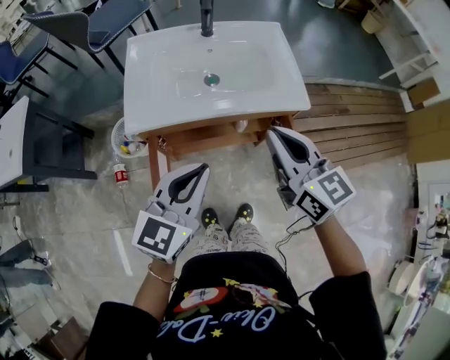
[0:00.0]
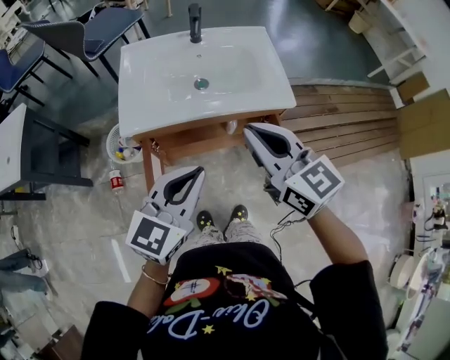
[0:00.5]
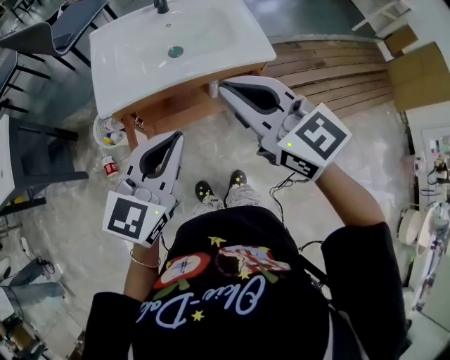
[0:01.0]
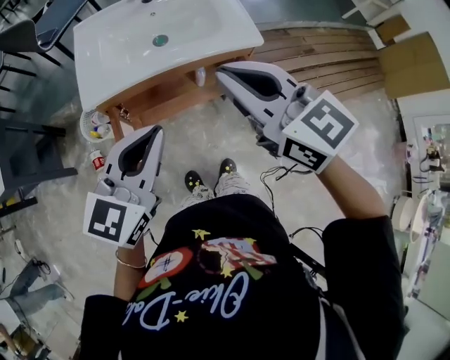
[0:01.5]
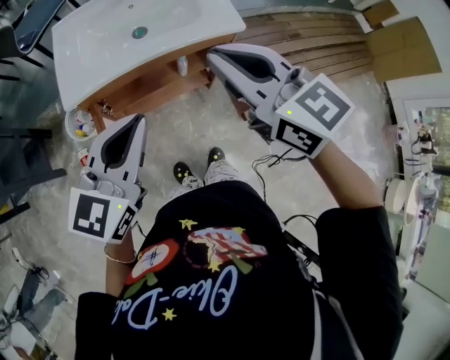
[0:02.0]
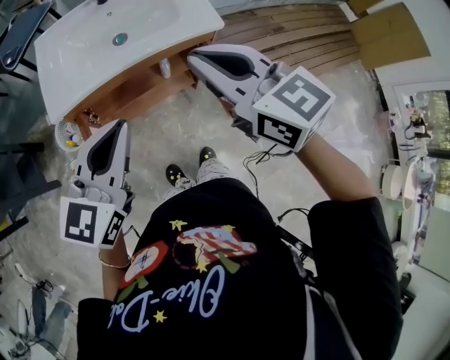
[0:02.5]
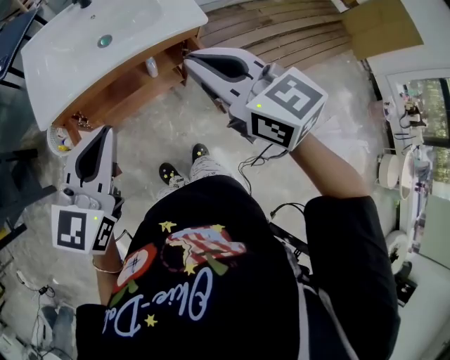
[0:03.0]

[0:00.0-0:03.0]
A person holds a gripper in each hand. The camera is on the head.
0.0 to 1.5 s: The right gripper goes about 10 cm upward and backward. The left gripper changes place by about 5 cm.
1.5 to 3.0 s: The right gripper moves to the right, some 5 cm.

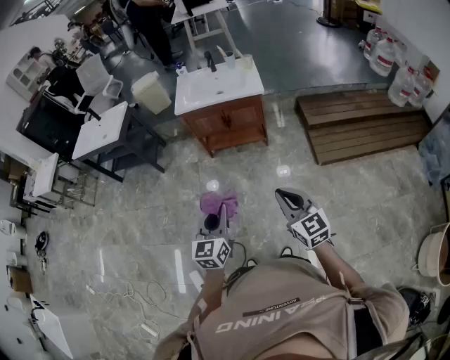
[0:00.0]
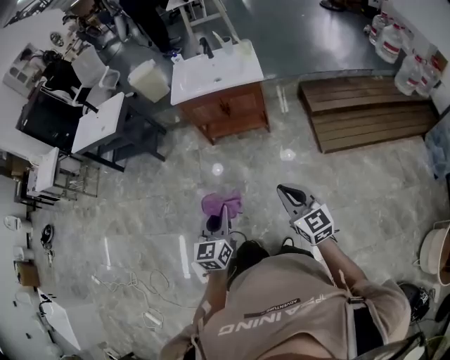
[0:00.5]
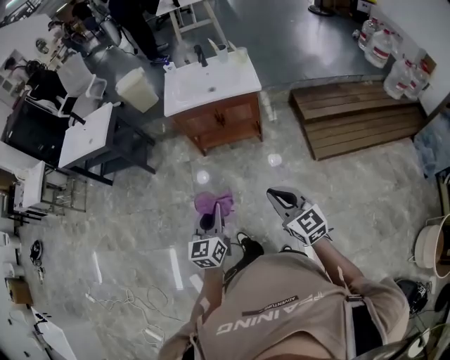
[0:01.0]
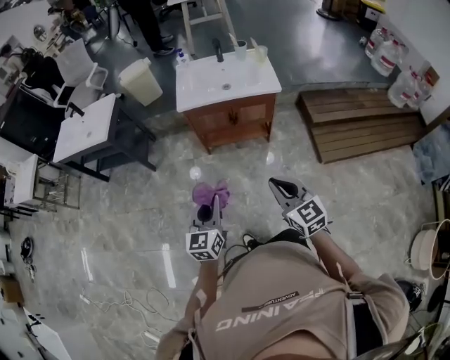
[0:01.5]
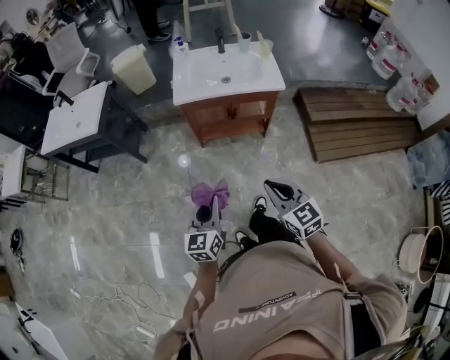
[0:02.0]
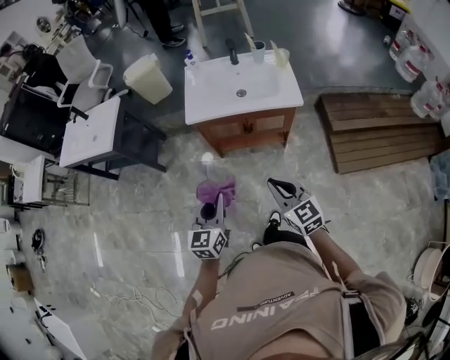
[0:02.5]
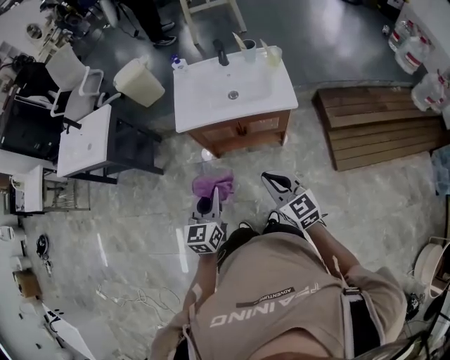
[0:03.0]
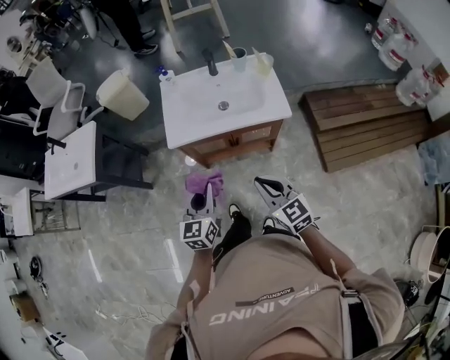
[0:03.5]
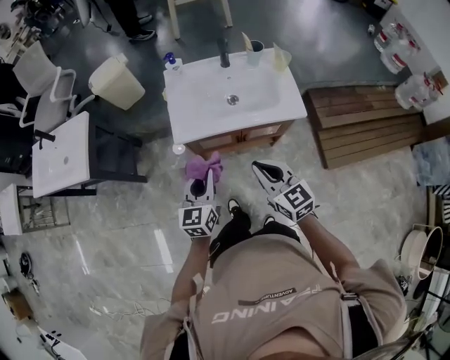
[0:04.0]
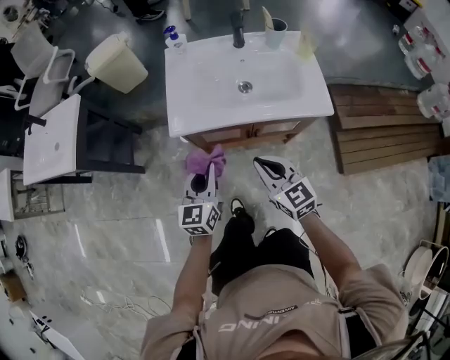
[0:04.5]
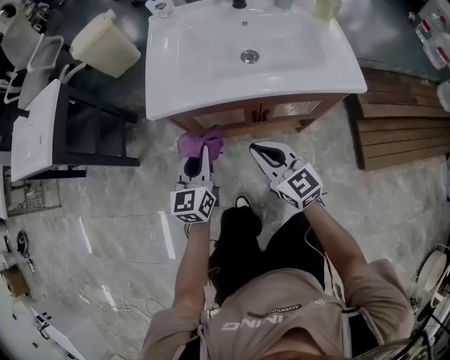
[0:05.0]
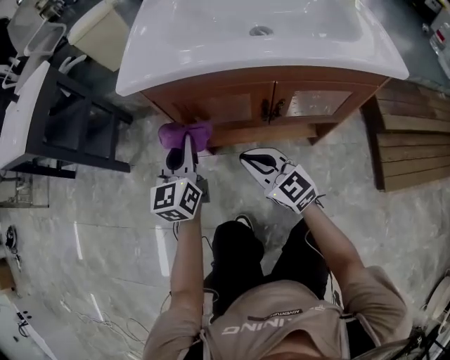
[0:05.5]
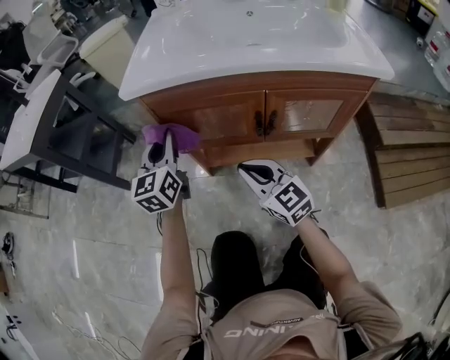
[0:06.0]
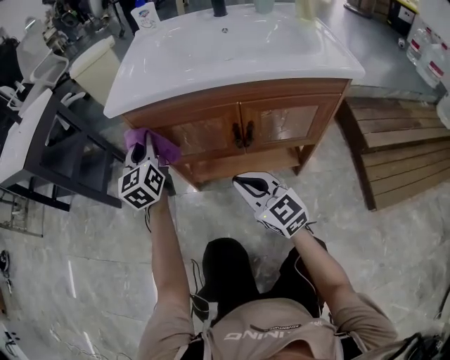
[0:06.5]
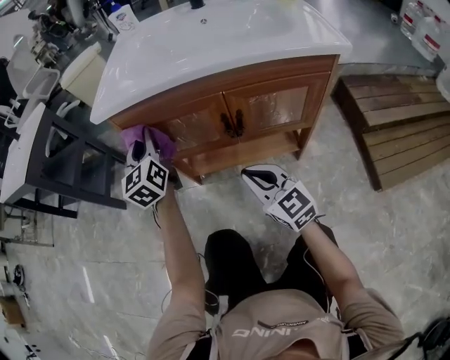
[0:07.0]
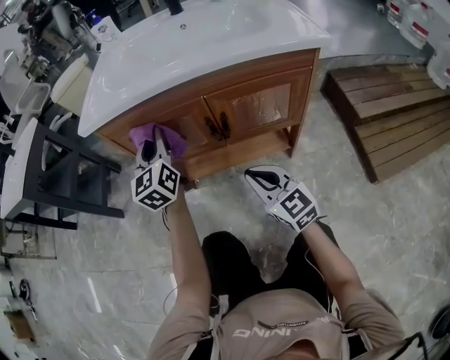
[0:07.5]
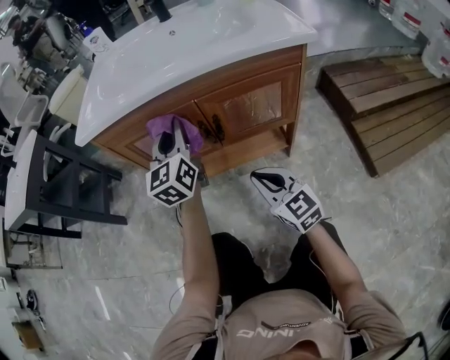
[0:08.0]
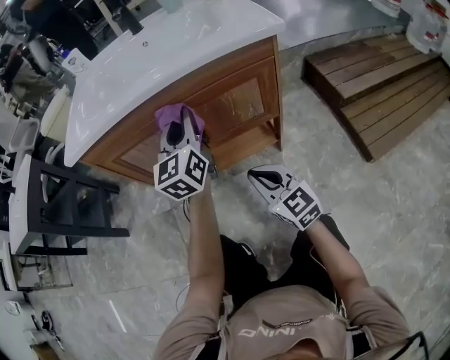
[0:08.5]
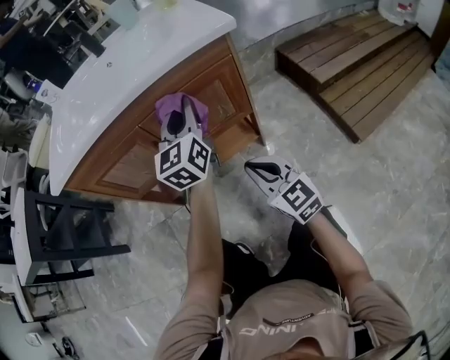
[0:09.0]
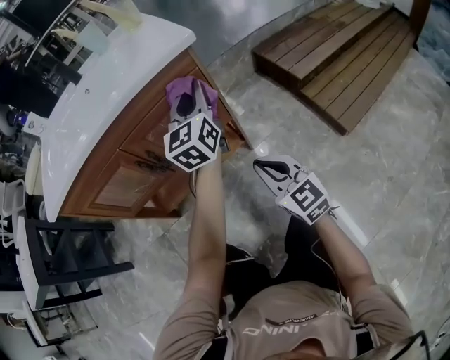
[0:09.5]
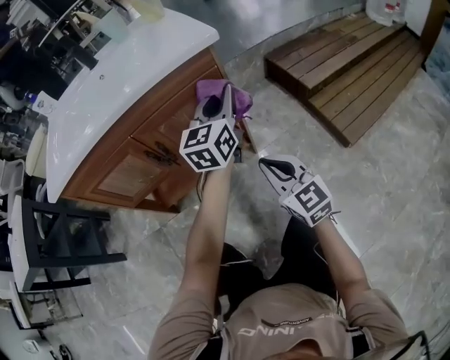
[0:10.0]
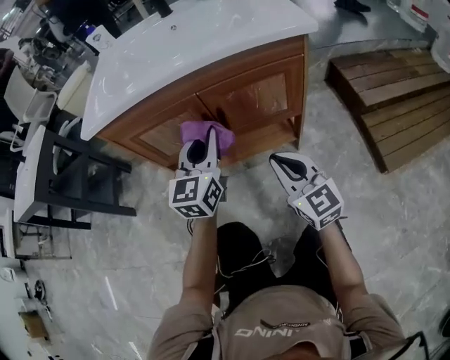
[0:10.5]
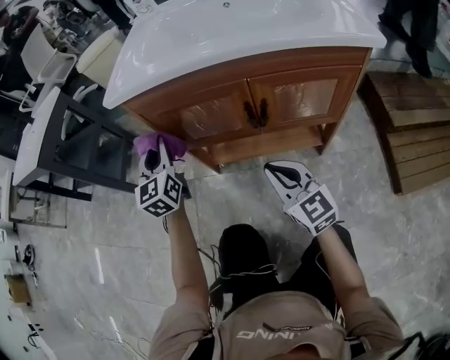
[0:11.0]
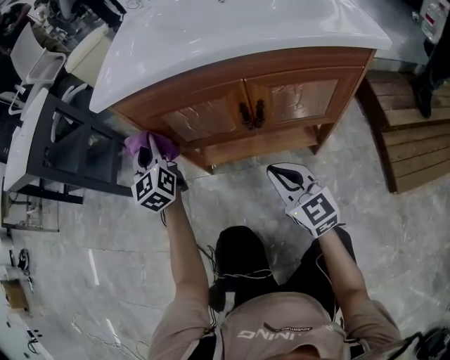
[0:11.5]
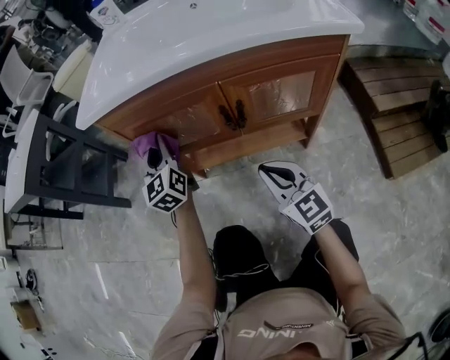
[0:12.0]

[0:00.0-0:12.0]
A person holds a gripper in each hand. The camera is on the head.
0.0 to 2.0 s: Both grippers travel together forward and to the left, about 25 cm.
2.0 to 4.0 s: The grippers both shift forward by approximately 35 cm.
4.0 to 6.0 s: The left gripper heads downward and forward, covering roughly 40 cm, and turns by approximately 20 degrees; the right gripper is displaced downward by approximately 50 cm.
6.0 to 8.0 s: The left gripper goes about 20 cm to the right. Meanwhile the right gripper moves to the right and backward, about 15 cm.
8.0 to 10.0 s: The right gripper changes place by some 15 cm, and rotates some 20 degrees. Meanwhile the left gripper moves about 35 cm, and turns by some 40 degrees.
10.0 to 12.0 s: The left gripper ends up roughly 50 cm from where it was, and rotates about 50 degrees; the right gripper moves some 20 cm, and rotates some 20 degrees.

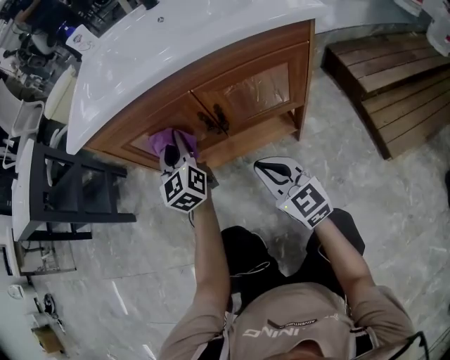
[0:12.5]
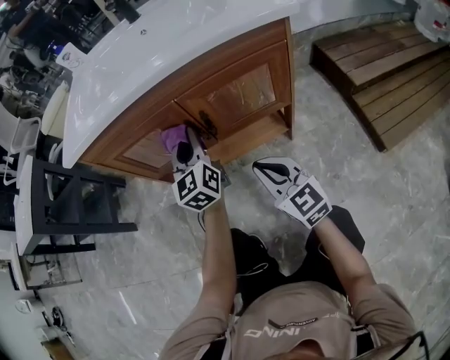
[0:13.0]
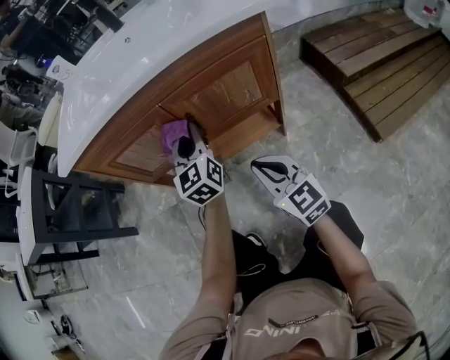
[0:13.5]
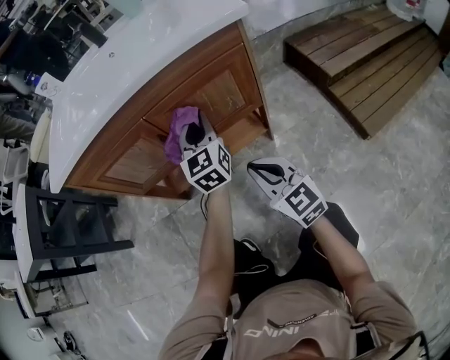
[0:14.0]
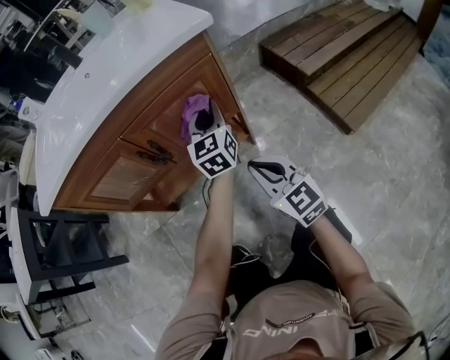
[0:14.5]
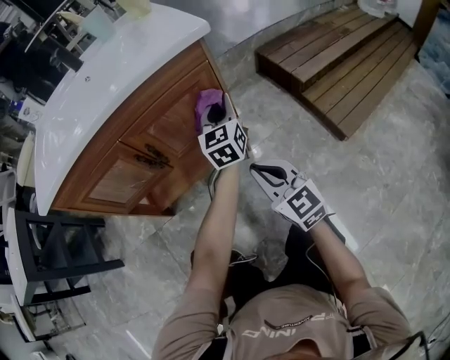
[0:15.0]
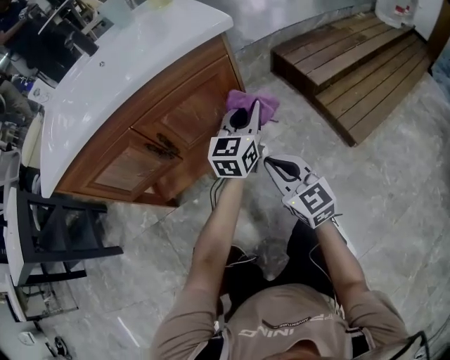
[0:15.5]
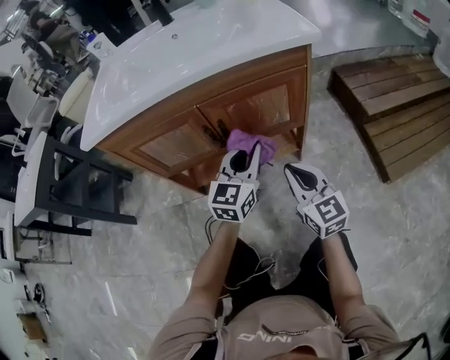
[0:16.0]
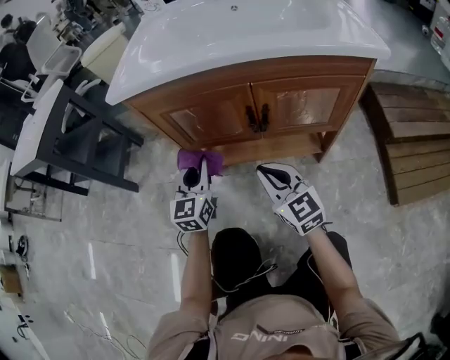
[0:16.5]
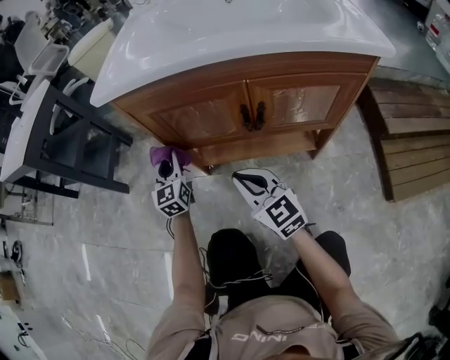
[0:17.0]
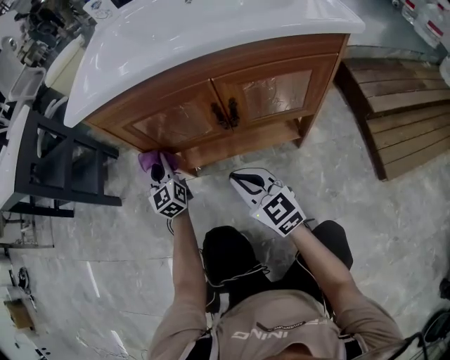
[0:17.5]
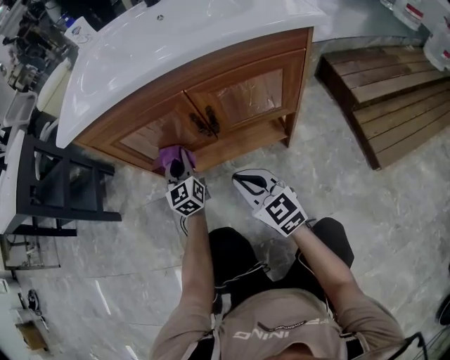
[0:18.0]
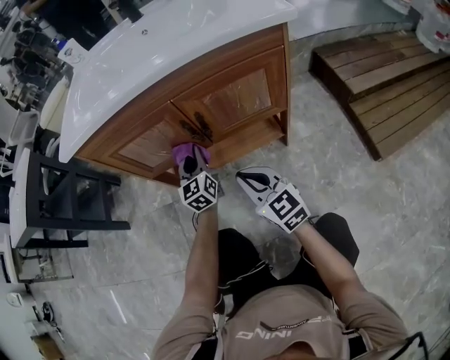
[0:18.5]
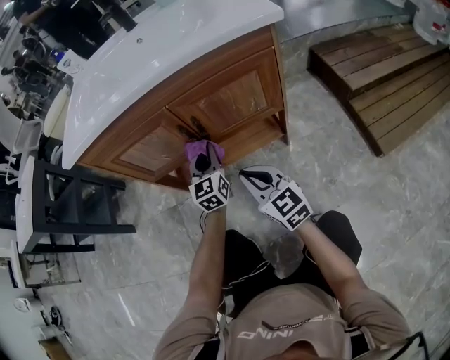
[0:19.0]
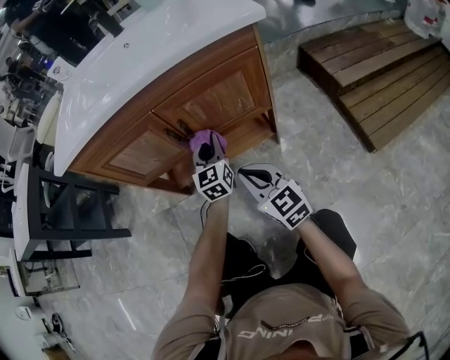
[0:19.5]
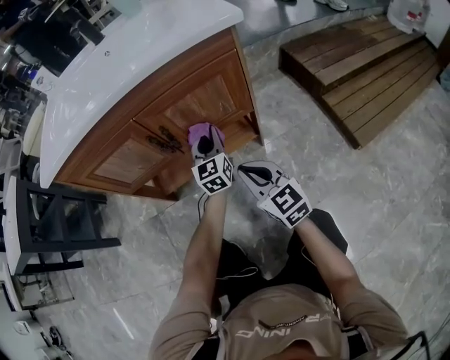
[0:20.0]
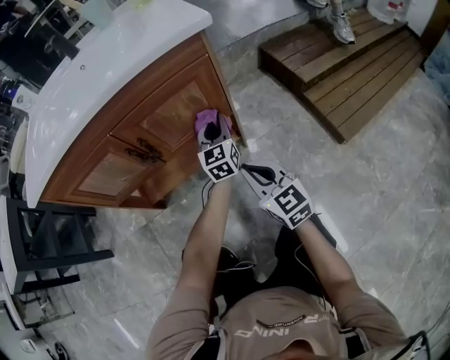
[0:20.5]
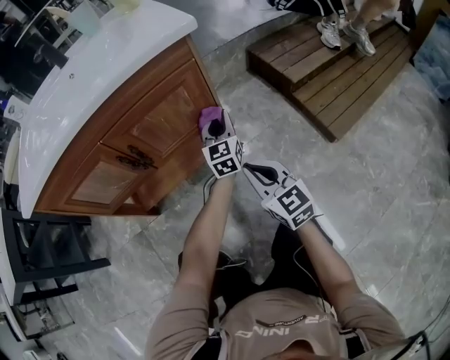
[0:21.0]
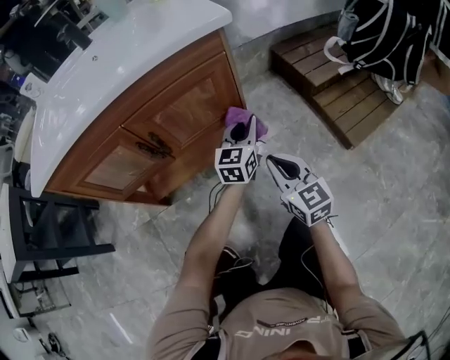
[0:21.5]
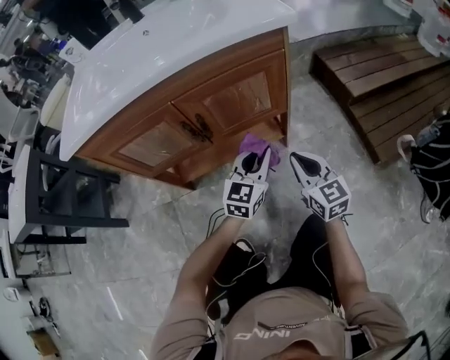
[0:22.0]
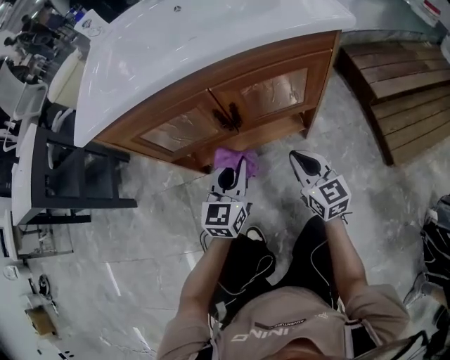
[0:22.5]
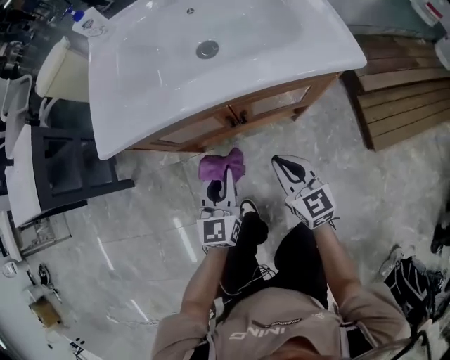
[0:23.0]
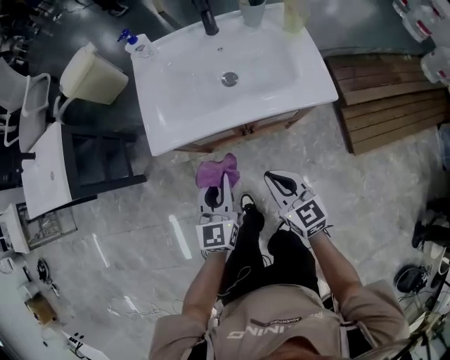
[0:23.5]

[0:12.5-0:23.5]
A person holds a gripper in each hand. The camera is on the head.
12.5 to 14.5 s: The left gripper heads to the right, covering some 30 cm, and changes its angle by approximately 30 degrees, while the right gripper is displaced to the right and backward by roughly 15 cm.
14.5 to 16.0 s: The left gripper goes approximately 15 cm backward and to the left.
16.0 to 18.0 s: The left gripper changes place by approximately 25 cm, and changes its angle by some 30 degrees.
18.0 to 20.0 s: The left gripper heads to the right, covering some 25 cm. Meanwhile the right gripper goes about 10 cm to the right.
20.0 to 21.5 s: Both grippers move to the right, roughly 15 cm. The left gripper changes its angle by approximately 30 degrees.
21.5 to 23.5 s: The left gripper changes place by approximately 50 cm, and rotates approximately 30 degrees; the right gripper is displaced upward by roughly 35 cm, and changes its angle by roughly 20 degrees.

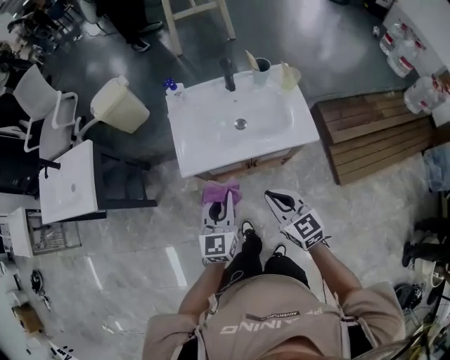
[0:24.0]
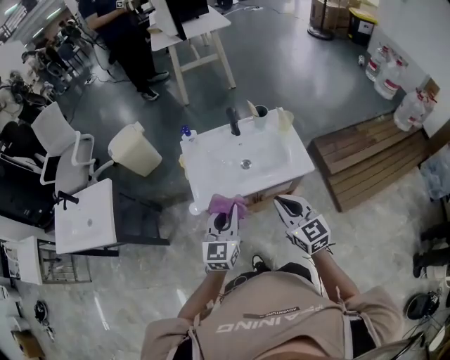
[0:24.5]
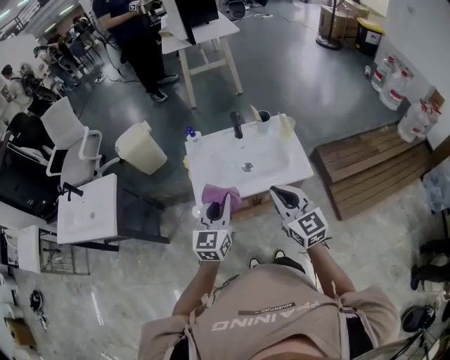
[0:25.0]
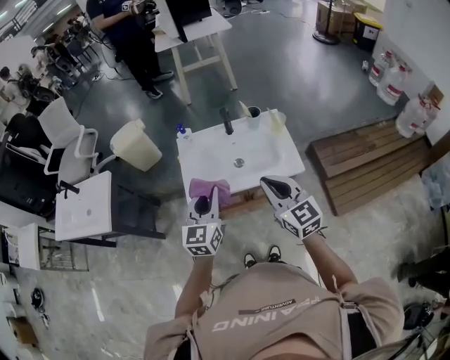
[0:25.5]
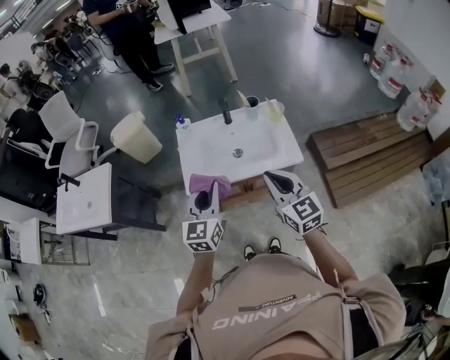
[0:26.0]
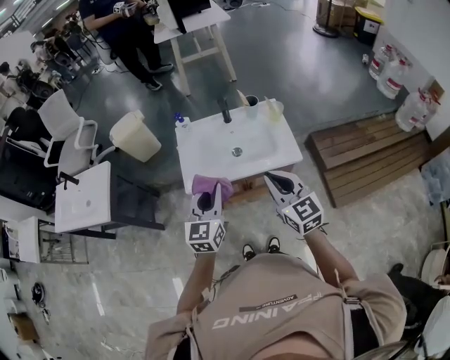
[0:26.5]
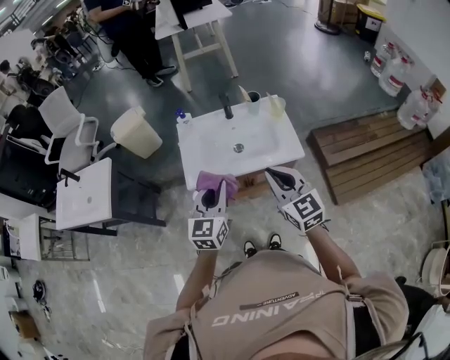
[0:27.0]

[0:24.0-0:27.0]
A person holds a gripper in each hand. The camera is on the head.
24.0 to 25.5 s: Both grippers travel together upward, roughly 15 cm.
25.5 to 27.0 s: The grippers make only small movements.
